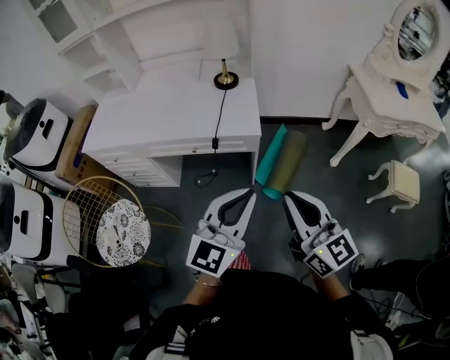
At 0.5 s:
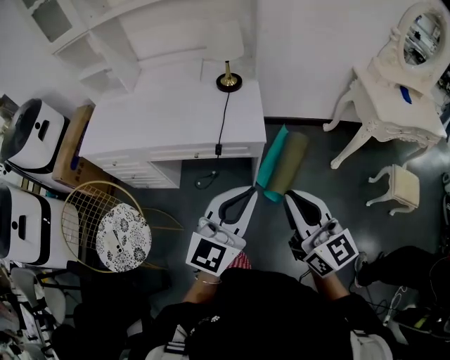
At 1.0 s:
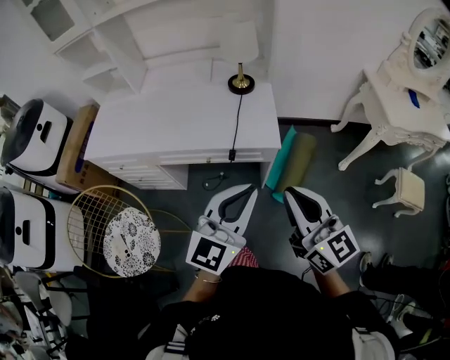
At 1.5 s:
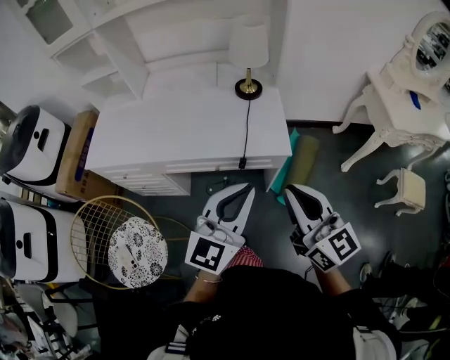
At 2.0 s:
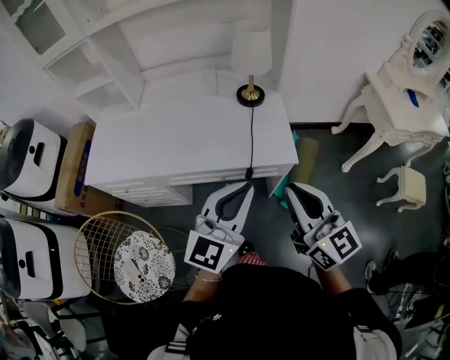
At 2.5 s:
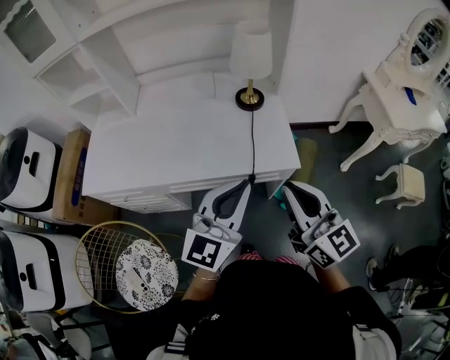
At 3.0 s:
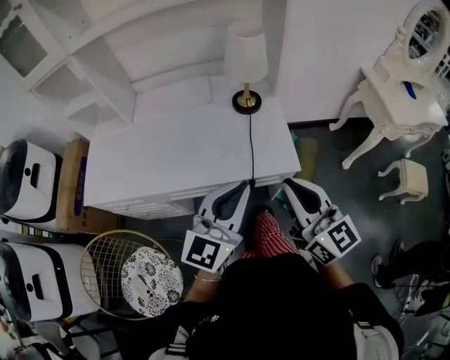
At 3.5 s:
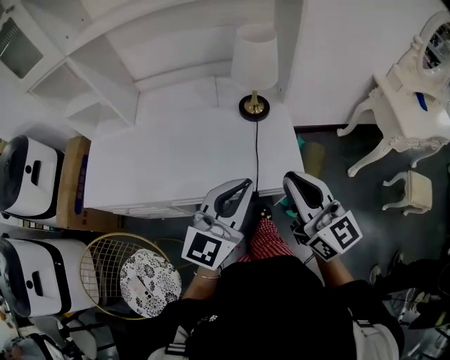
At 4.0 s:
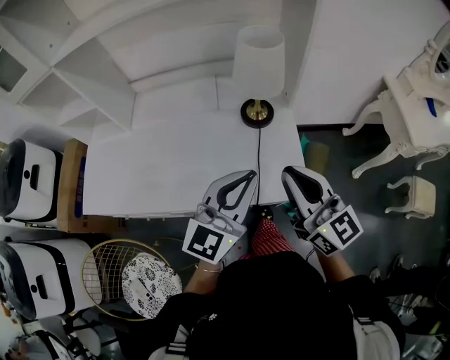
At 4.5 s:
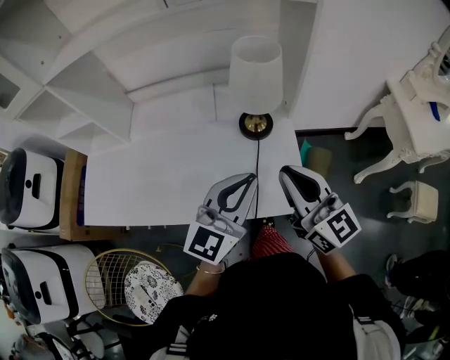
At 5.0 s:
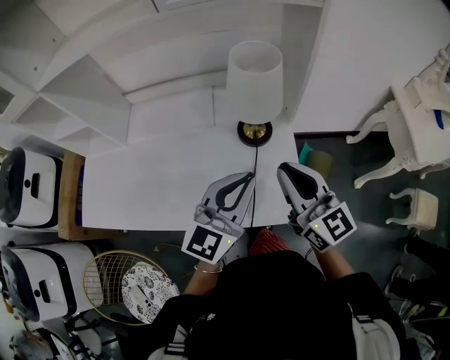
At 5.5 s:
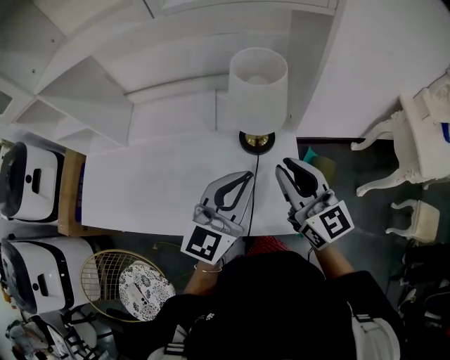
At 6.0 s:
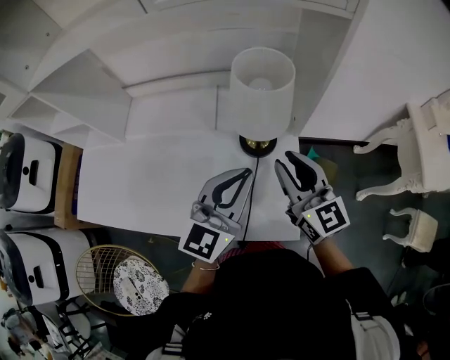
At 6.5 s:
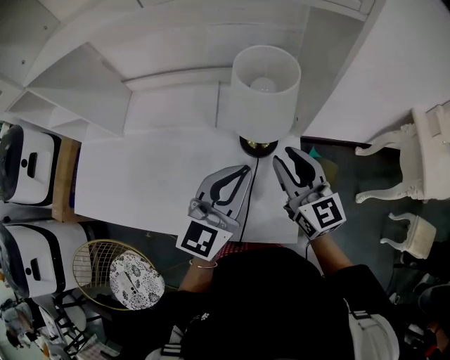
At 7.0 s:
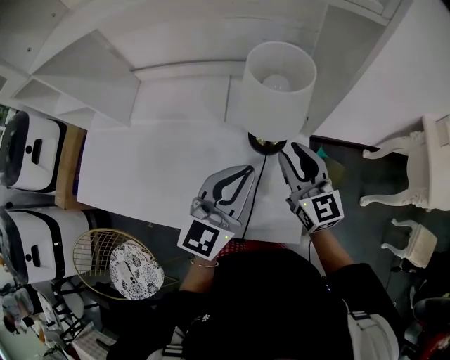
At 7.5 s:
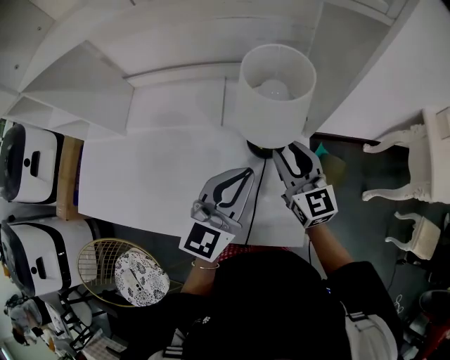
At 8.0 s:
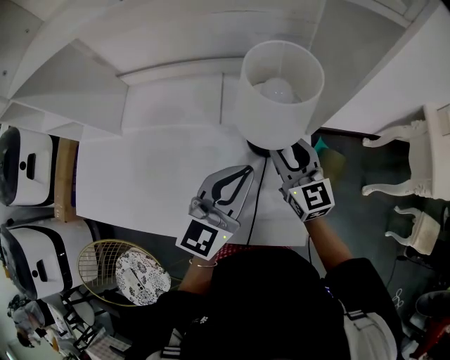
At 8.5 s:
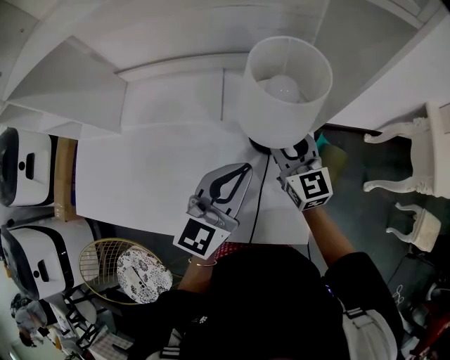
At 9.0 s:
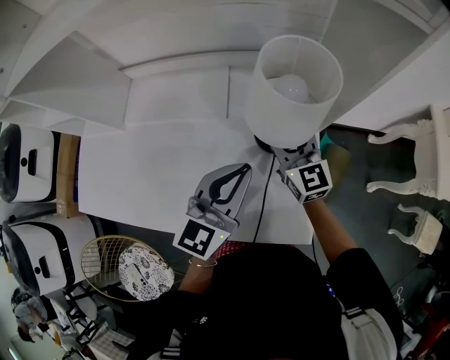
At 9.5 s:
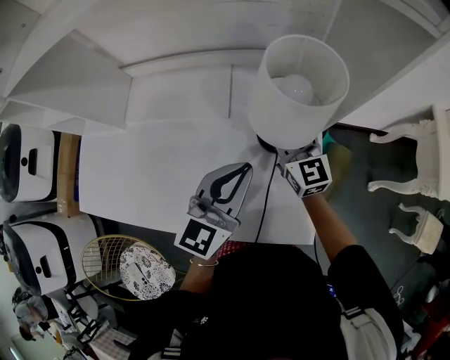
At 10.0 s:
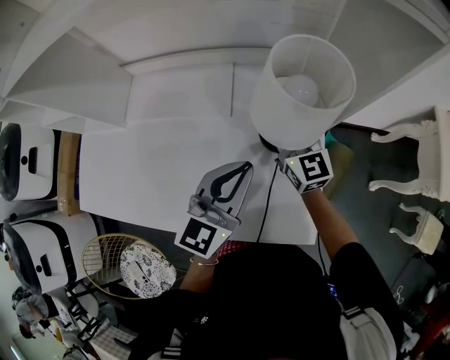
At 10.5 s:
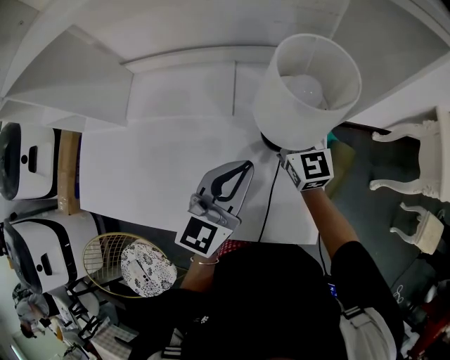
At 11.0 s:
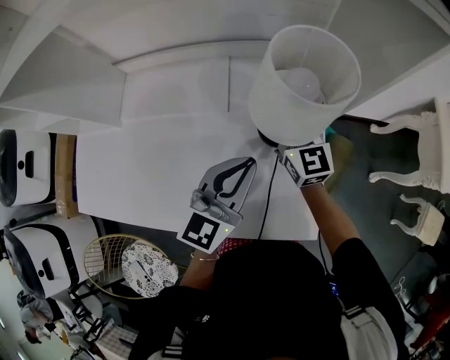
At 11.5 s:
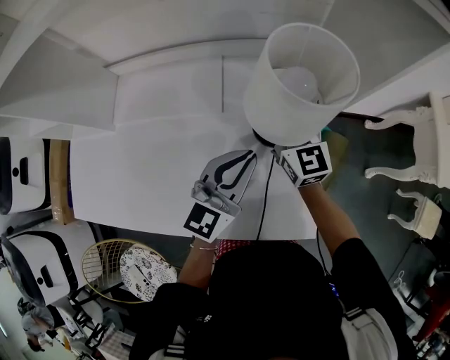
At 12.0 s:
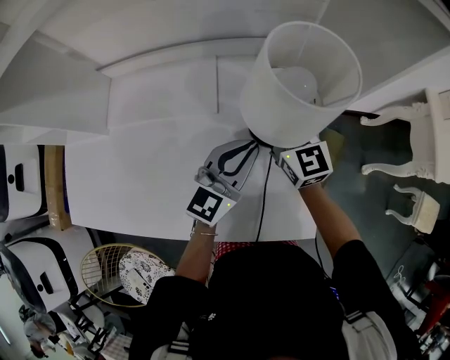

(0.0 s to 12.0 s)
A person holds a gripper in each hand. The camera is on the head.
0.0 s - 2.0 s: The right gripper travels forward and to the left by roughly 25 cm; the left gripper moves to the left and forward, roughly 25 cm.
2.0 s - 4.0 s: Both grippers move forward, approximately 20 cm.
4.0 s - 6.0 s: Both grippers move forward, approximately 15 cm.
6.0 s - 8.0 s: The right gripper is displaced downward and forward by about 10 cm, while the left gripper shifts by approximately 5 cm.
8.0 s - 10.0 s: The right gripper travels forward and to the left by approximately 10 cm.
10.0 s - 12.0 s: The right gripper closes its fingers, while the left gripper shifts some 5 cm downward.

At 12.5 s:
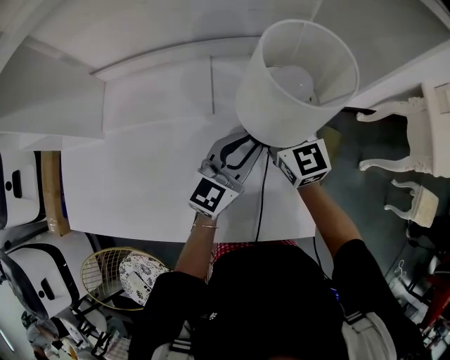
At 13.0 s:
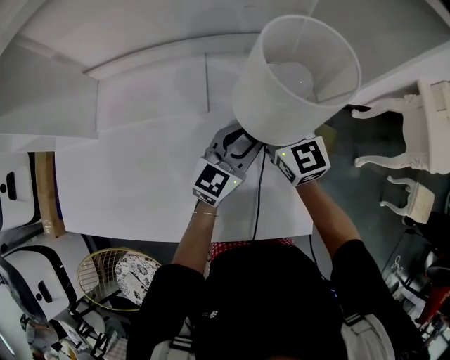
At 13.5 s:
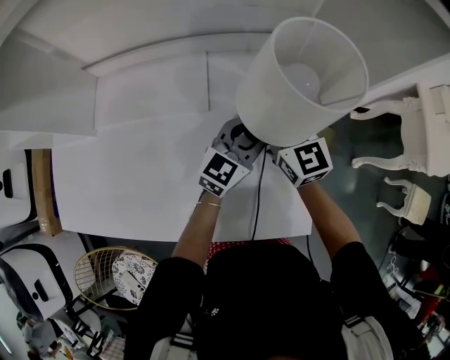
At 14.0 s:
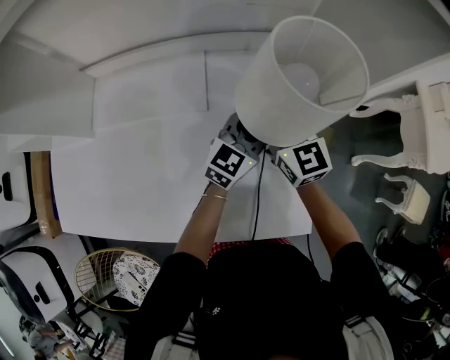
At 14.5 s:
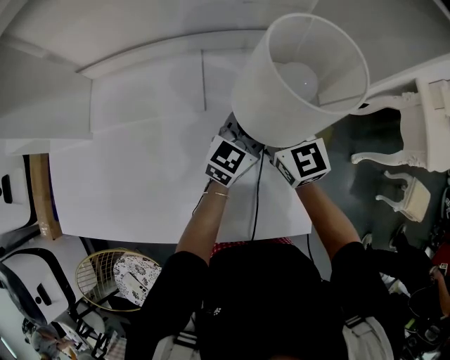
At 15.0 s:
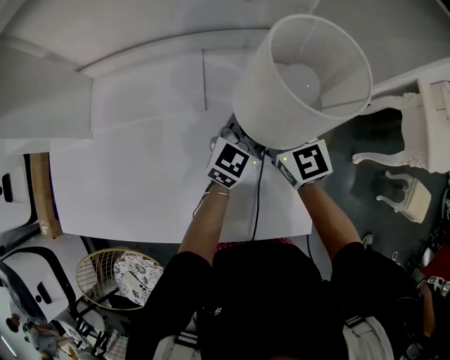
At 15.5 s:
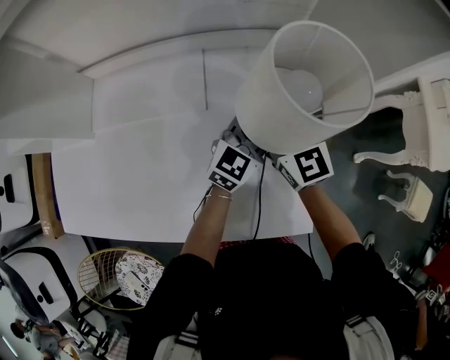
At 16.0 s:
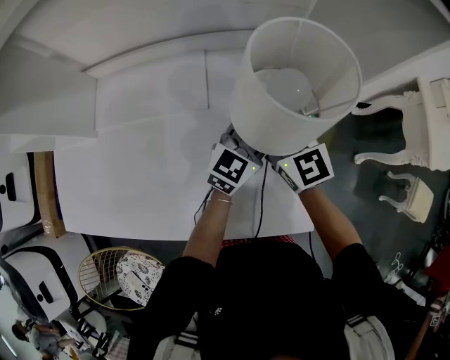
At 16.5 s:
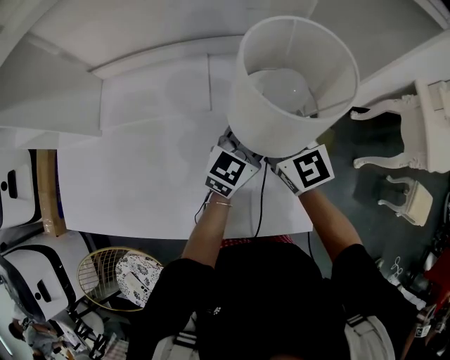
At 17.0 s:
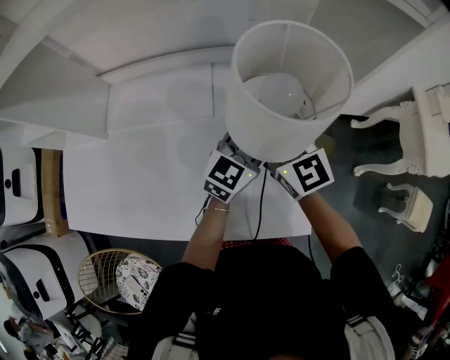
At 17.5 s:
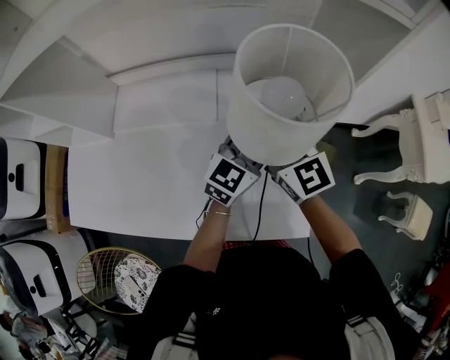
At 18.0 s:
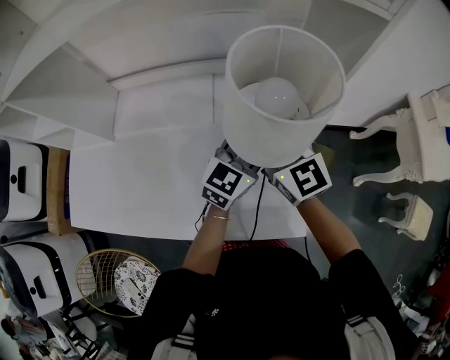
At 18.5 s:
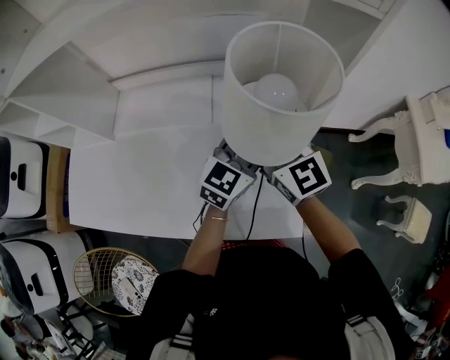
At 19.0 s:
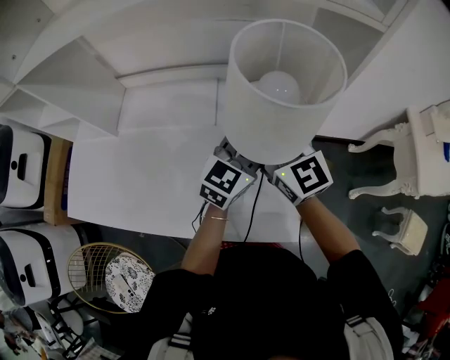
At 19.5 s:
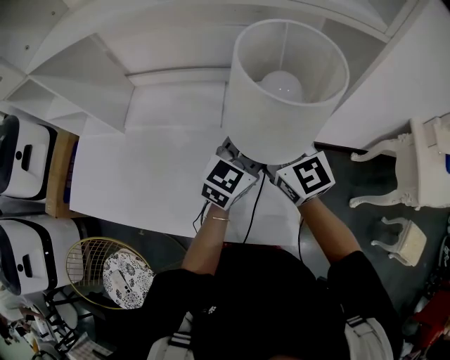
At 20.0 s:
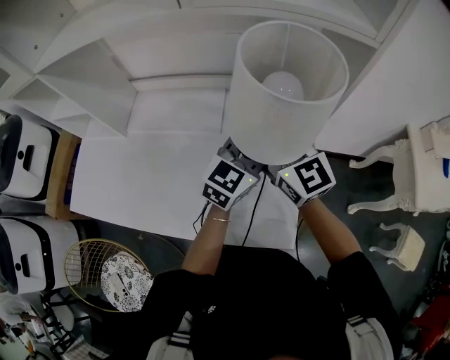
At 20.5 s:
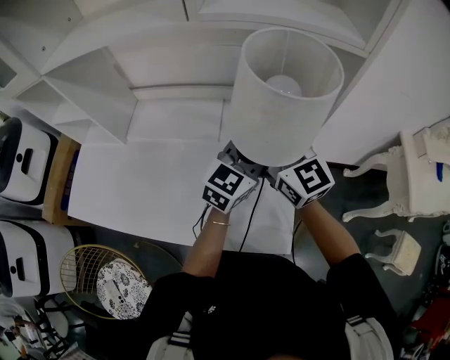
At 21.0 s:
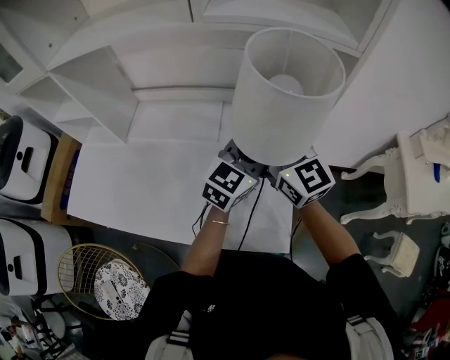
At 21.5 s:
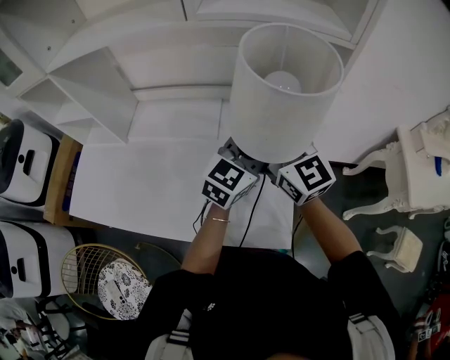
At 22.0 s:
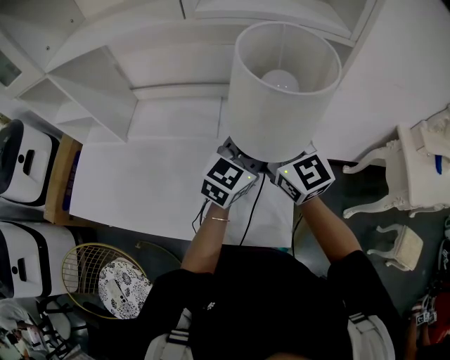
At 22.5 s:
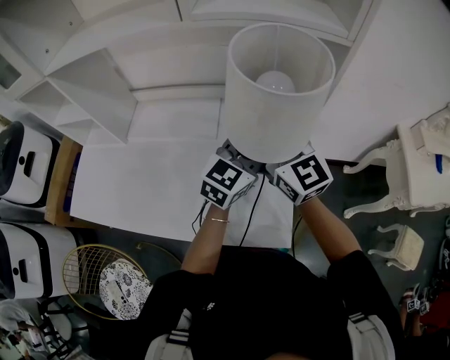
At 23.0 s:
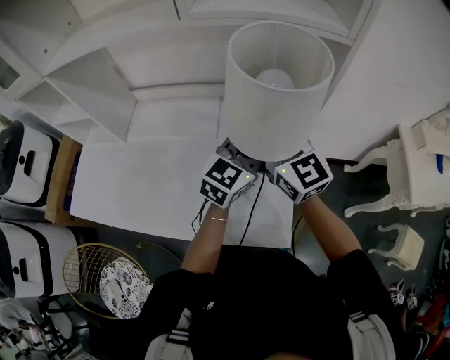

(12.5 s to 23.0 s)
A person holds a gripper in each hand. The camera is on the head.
12.5 s - 14.5 s: The left gripper travels forward by about 5 cm.
14.5 s - 16.5 s: The right gripper moves some 5 cm.
16.5 s - 19.0 s: Both grippers move upward, approximately 10 cm.
19.0 s - 21.0 s: The two grippers go roughly 5 cm upward.
21.0 s - 23.0 s: Both grippers stay about where they are.

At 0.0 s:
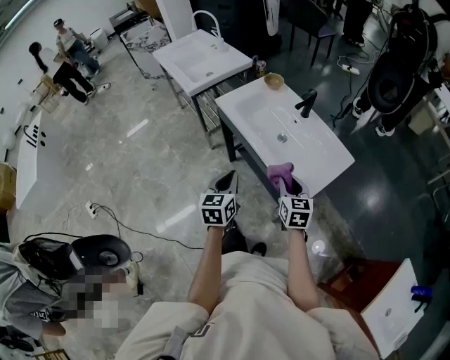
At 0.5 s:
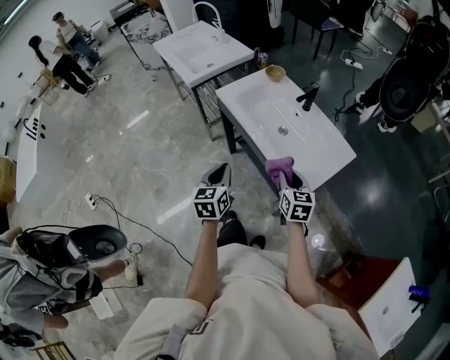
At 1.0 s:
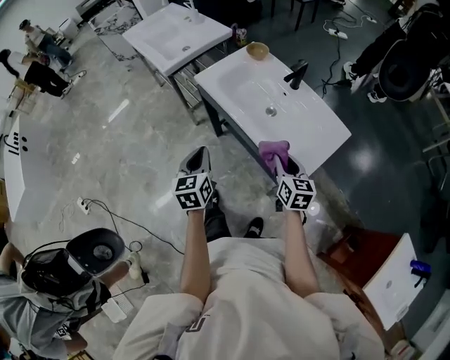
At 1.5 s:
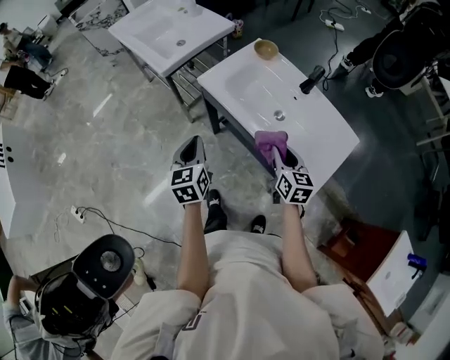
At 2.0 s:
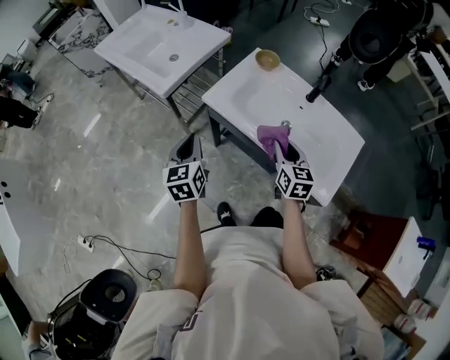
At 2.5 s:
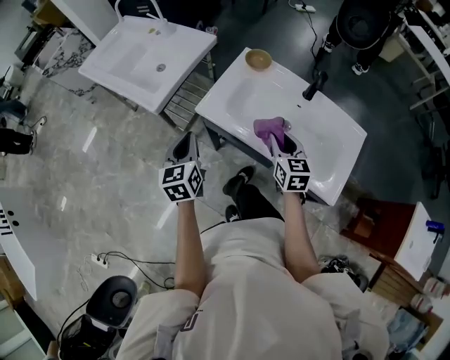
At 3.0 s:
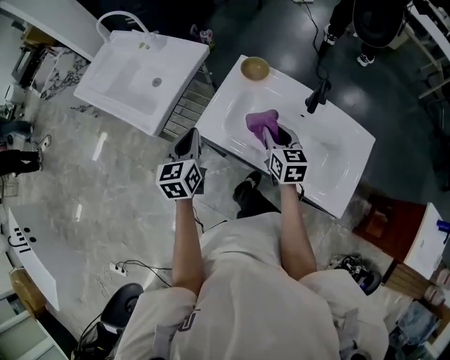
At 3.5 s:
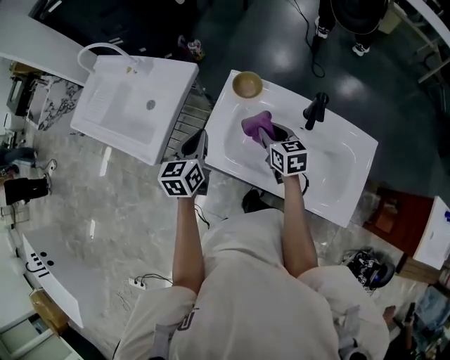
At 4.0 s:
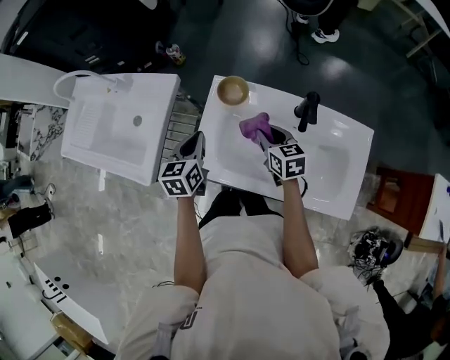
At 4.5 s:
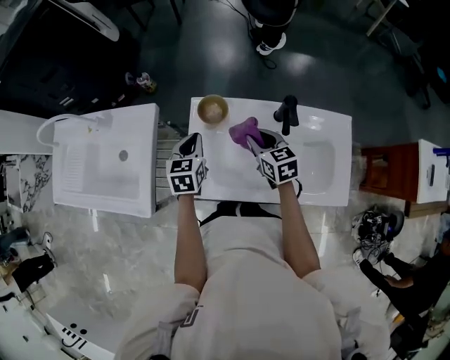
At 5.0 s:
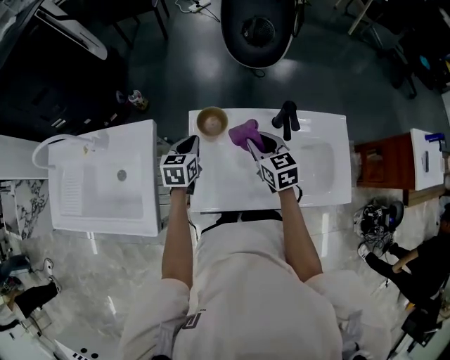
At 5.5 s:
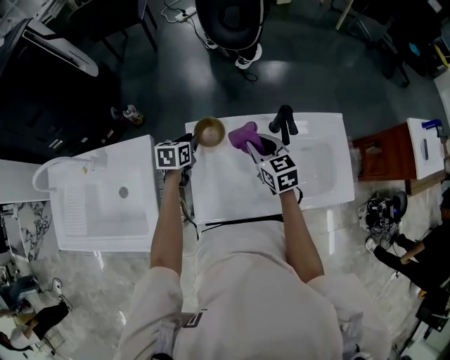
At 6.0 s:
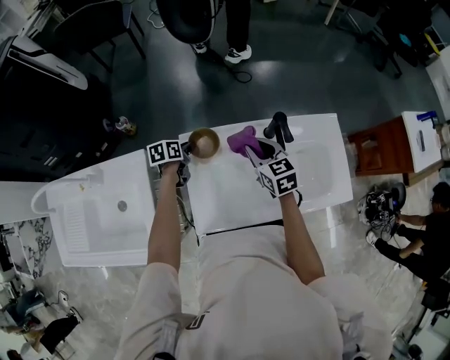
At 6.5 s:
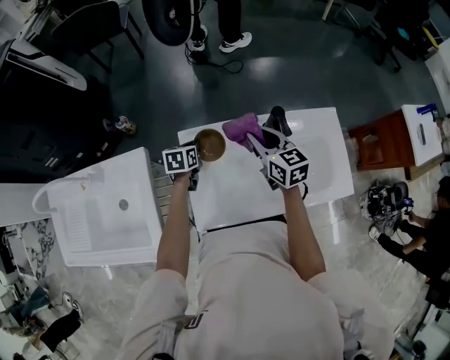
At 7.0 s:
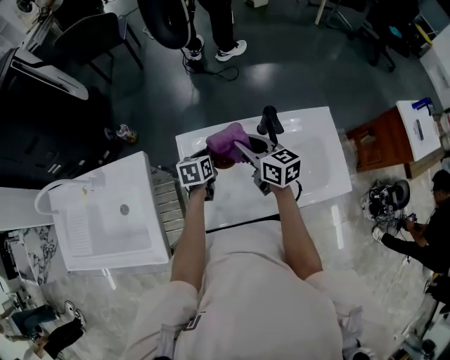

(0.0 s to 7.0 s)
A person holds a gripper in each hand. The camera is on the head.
0.0 s - 2.0 s: The left gripper is displaced forward and to the left by roughly 30 cm. The right gripper is displaced forward and to the left by about 20 cm.
2.0 s - 3.5 s: Both grippers travel together forward, some 20 cm. The left gripper rotates about 30 degrees.
3.5 s - 5.0 s: The right gripper moves approximately 5 cm, and turns by approximately 20 degrees, while the left gripper moves some 15 cm, and changes its angle by roughly 30 degrees.
5.0 s - 7.0 s: The left gripper travels to the right and downward by about 10 cm, and opens and closes again. Meanwhile the right gripper rotates roughly 20 degrees.
